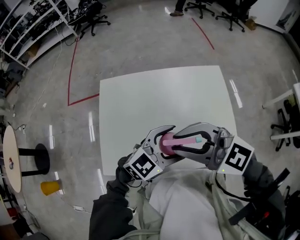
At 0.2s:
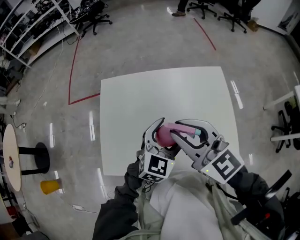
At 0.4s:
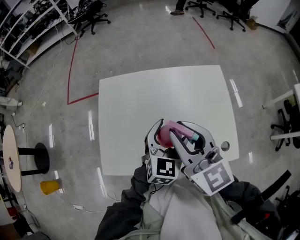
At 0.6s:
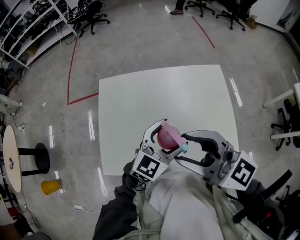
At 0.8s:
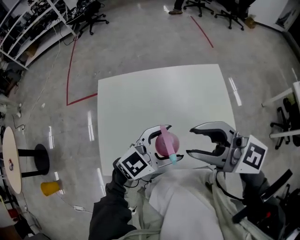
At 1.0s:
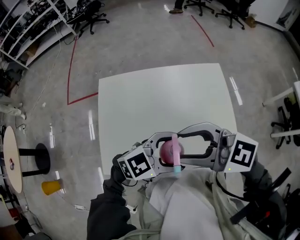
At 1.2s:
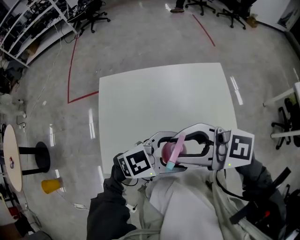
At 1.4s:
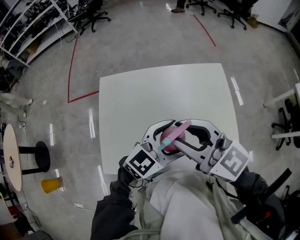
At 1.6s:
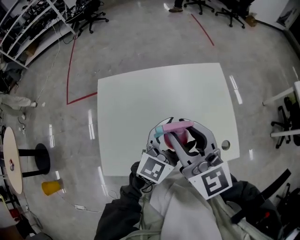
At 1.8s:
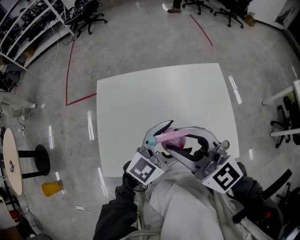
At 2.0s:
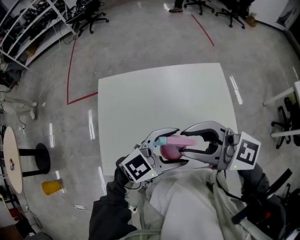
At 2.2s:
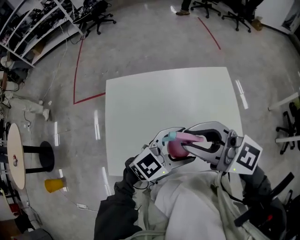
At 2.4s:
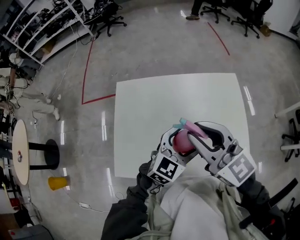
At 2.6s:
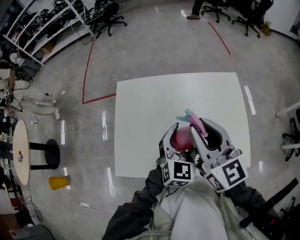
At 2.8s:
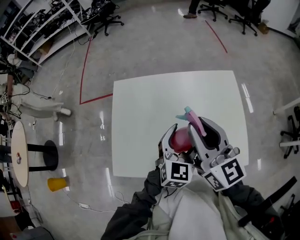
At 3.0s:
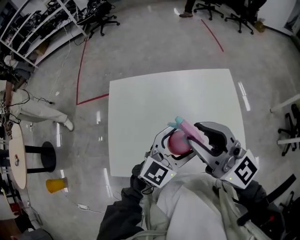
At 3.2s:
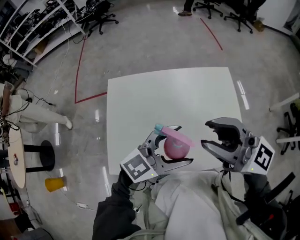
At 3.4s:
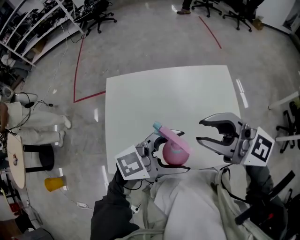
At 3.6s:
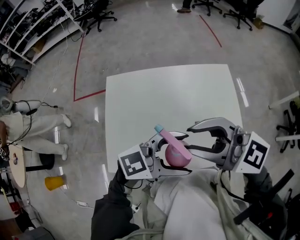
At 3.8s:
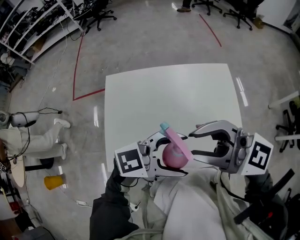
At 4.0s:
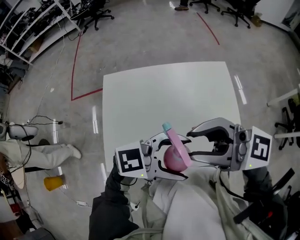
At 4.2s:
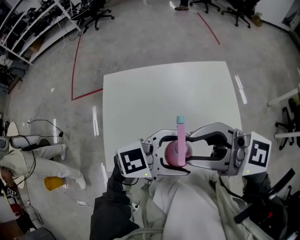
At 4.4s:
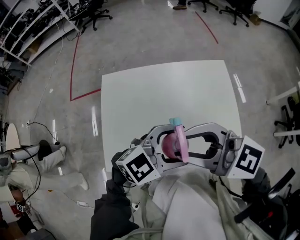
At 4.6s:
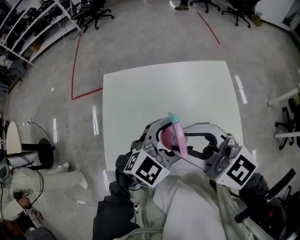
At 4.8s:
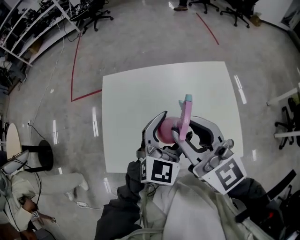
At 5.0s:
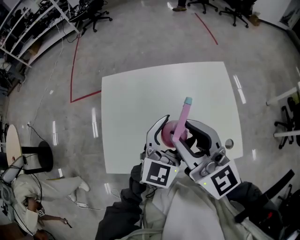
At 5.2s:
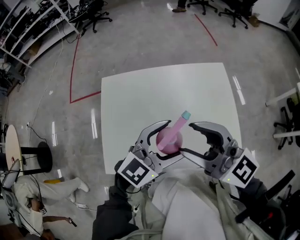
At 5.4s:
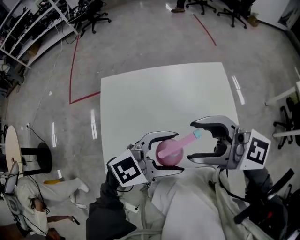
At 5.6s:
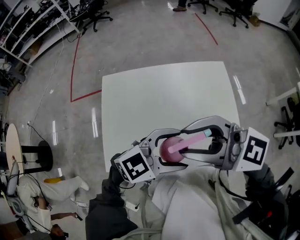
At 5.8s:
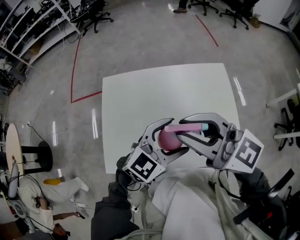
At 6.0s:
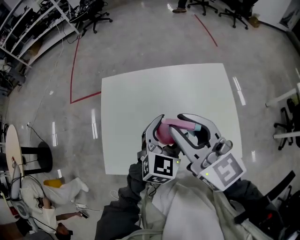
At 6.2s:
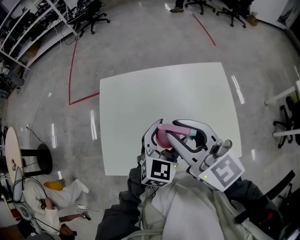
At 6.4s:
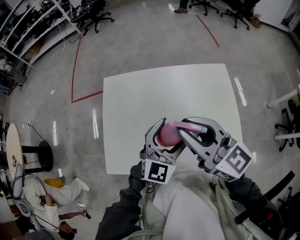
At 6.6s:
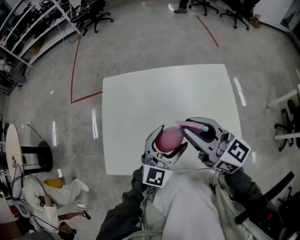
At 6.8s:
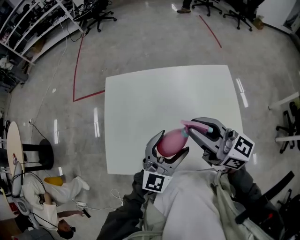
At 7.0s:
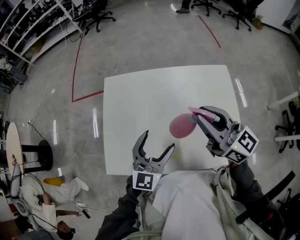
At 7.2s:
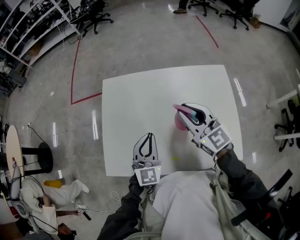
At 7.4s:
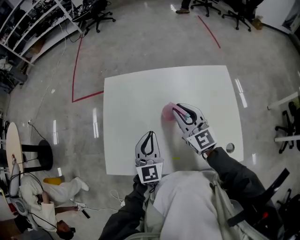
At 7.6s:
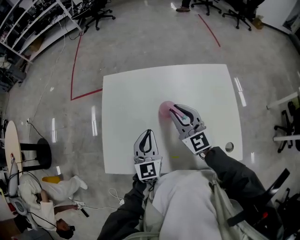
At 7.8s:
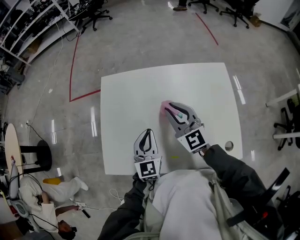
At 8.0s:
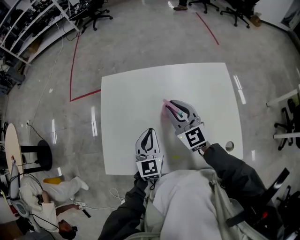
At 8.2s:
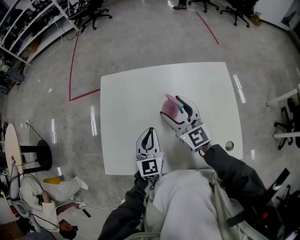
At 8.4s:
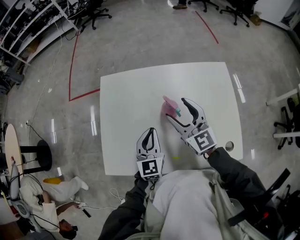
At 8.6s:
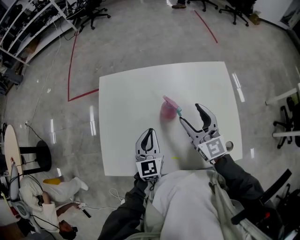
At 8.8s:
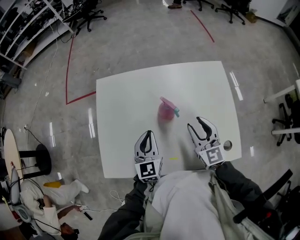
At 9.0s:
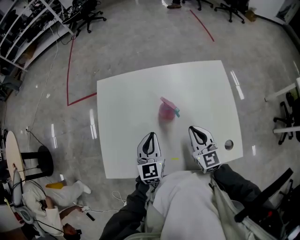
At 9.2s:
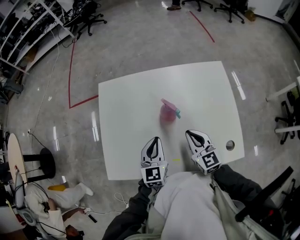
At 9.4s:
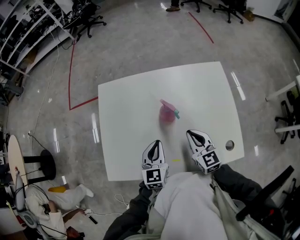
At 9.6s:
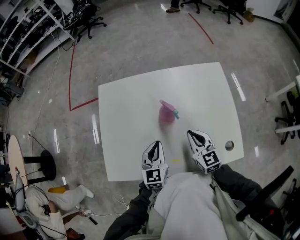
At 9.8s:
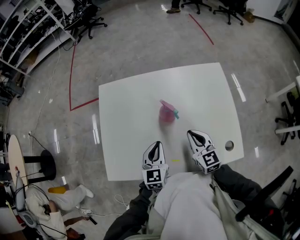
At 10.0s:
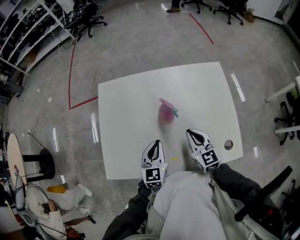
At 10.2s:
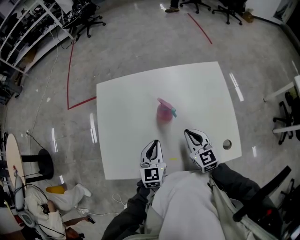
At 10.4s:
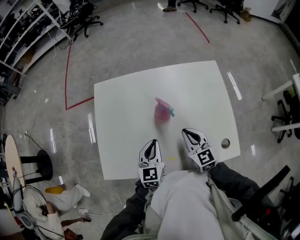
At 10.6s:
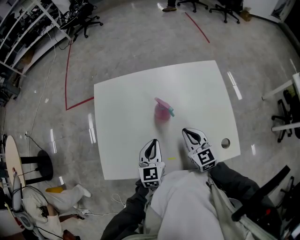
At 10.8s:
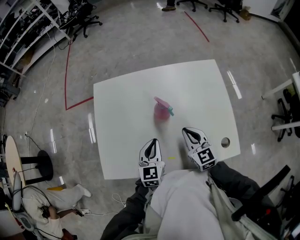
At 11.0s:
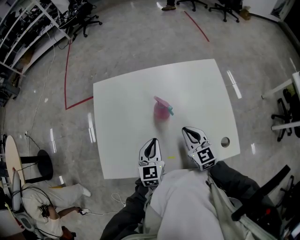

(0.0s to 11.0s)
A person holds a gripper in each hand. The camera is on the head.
0.0s - 1.6s: The left gripper ends up roughly 5 cm from where it was, and swivels roughly 20 degrees. Meanwhile the right gripper ends up roughly 5 cm from where it was, and rotates some 40 degrees.
1.6s - 3.2s: The right gripper moves roughly 10 cm, and rotates about 30 degrees. Meanwhile the left gripper moves some 5 cm, and swivels approximately 20 degrees.
3.2s - 4.8s: The left gripper shifts by some 5 cm, and changes its angle by approximately 40 degrees. The right gripper changes place by approximately 10 cm, and turns by roughly 30 degrees.
4.8s - 6.2s: The right gripper opens, then closes again.
6.2s - 7.8s: The left gripper goes roughly 15 cm to the left and downward, turns by some 30 degrees, and closes its fingers; the right gripper shifts roughly 20 cm downward and forward.
7.8s - 9.4s: The right gripper travels backward, downward and to the right by roughly 15 cm, swivels roughly 20 degrees, and opens and closes again; the left gripper moves approximately 5 cm.
9.4s - 11.0s: The two grippers keep their place.

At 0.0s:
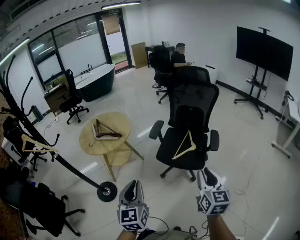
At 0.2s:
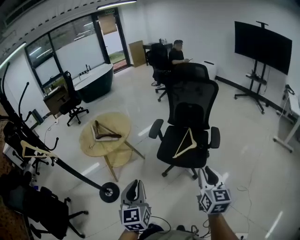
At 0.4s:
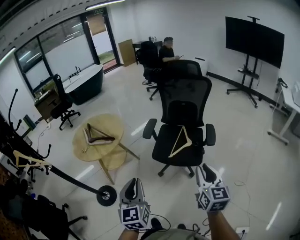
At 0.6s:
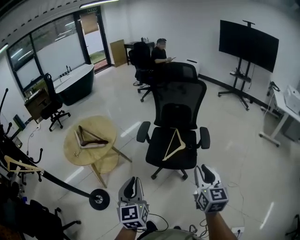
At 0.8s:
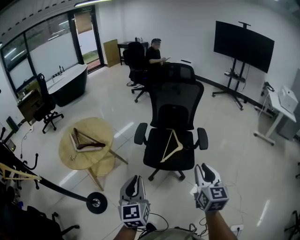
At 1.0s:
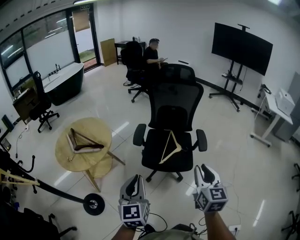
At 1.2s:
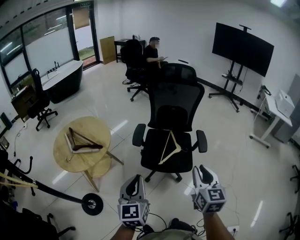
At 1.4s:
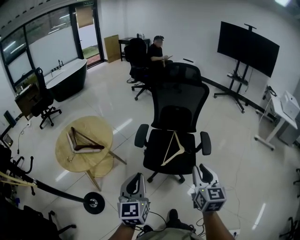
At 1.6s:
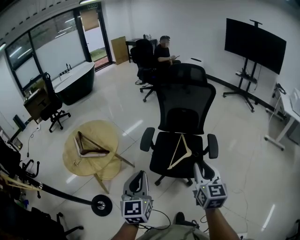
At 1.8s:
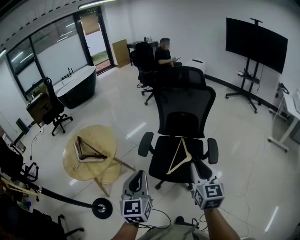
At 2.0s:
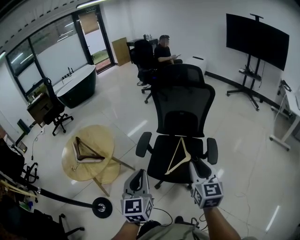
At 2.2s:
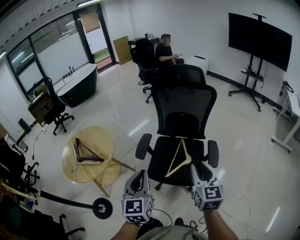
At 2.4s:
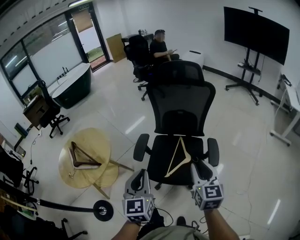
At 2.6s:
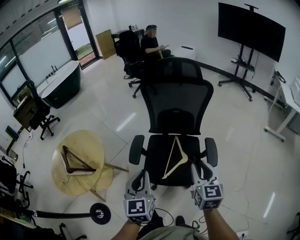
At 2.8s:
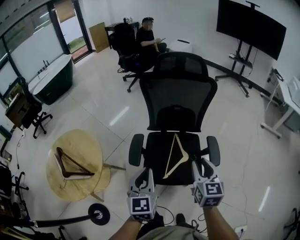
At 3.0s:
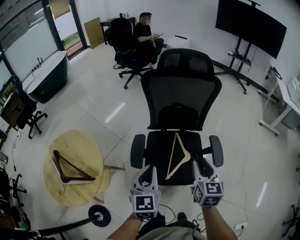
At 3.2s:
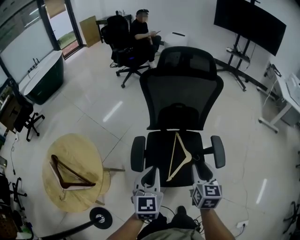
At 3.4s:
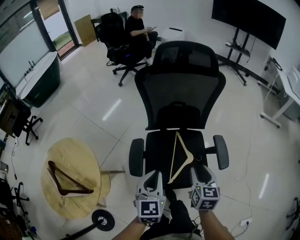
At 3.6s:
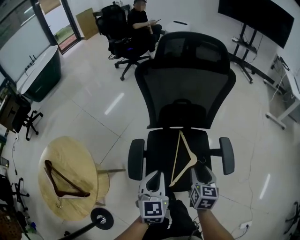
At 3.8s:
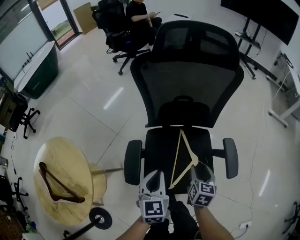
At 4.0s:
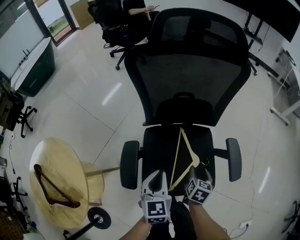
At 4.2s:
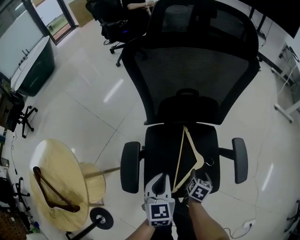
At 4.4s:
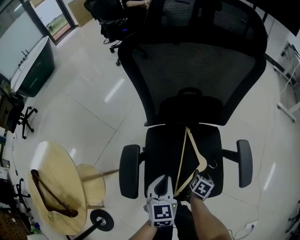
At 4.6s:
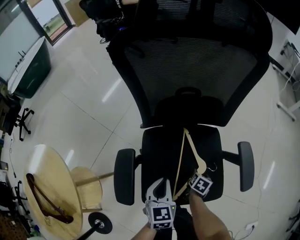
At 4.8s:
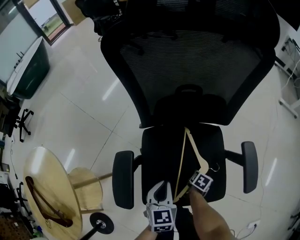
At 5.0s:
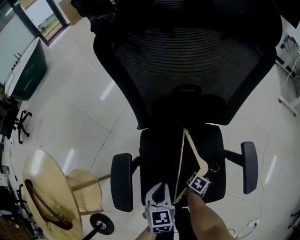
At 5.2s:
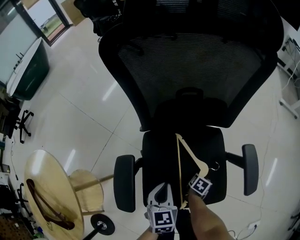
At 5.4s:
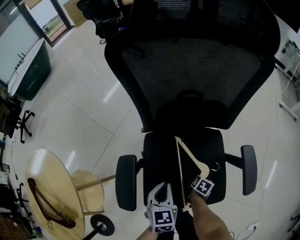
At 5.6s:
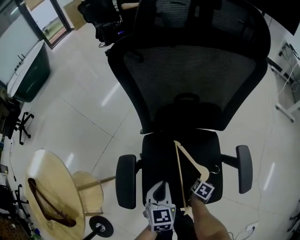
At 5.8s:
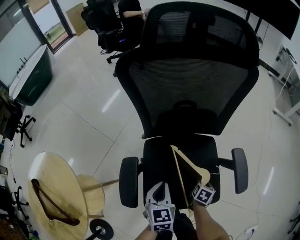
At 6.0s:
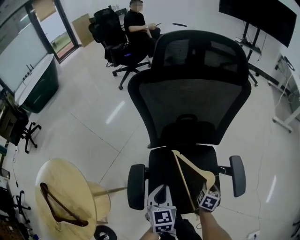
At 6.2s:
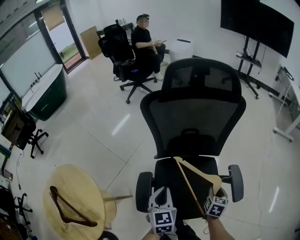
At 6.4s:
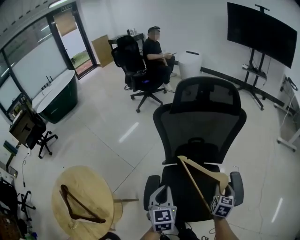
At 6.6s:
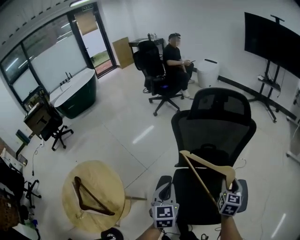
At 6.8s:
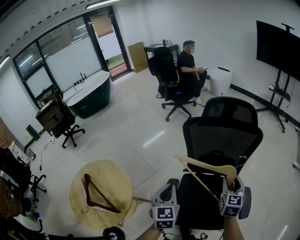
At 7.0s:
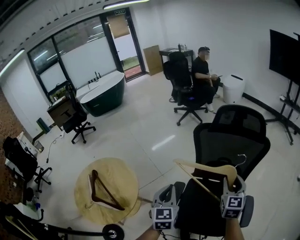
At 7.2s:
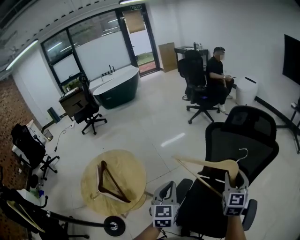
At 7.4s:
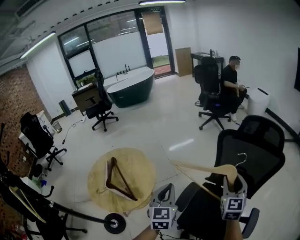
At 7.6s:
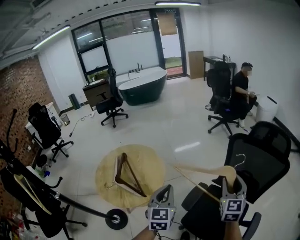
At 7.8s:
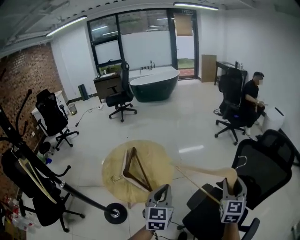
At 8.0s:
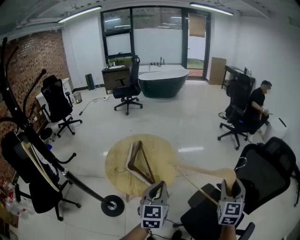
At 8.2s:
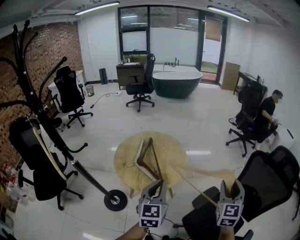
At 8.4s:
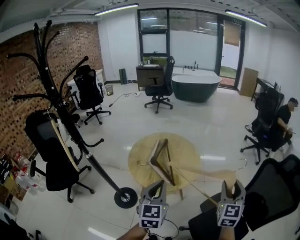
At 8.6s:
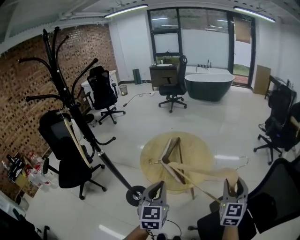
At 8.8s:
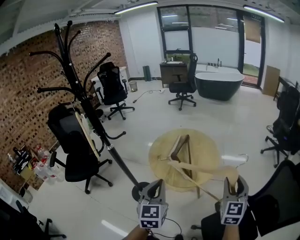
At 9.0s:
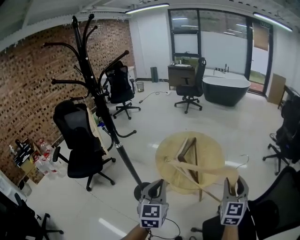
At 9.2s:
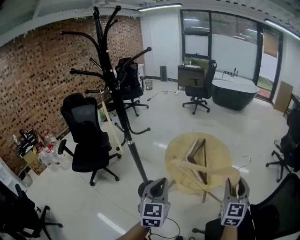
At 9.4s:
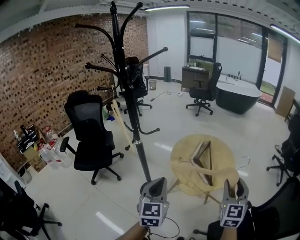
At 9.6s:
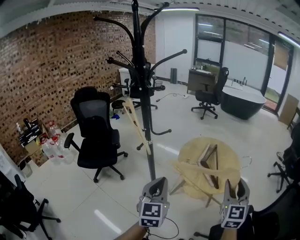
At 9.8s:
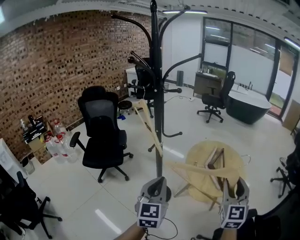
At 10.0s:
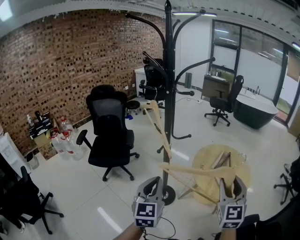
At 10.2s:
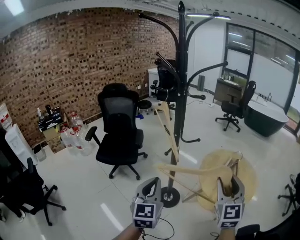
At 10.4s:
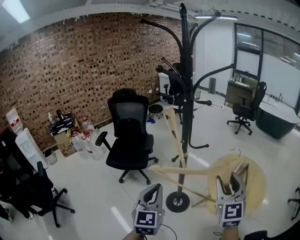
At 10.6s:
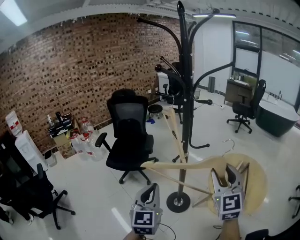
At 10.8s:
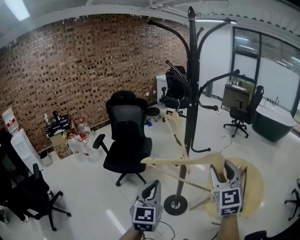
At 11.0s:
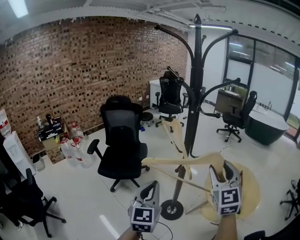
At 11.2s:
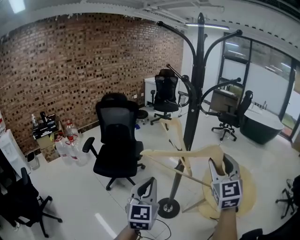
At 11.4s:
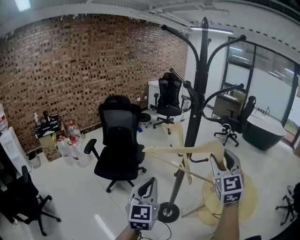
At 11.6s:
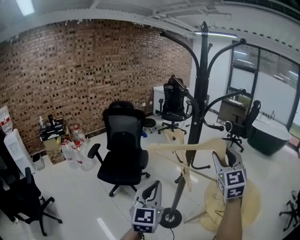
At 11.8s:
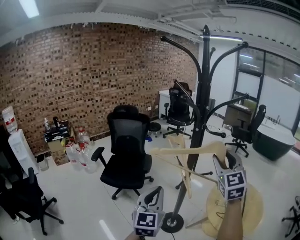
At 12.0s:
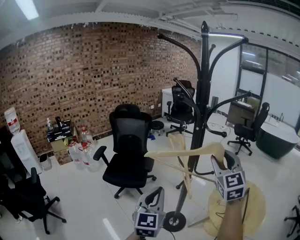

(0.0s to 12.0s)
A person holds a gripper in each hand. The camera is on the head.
0.0s - 1.6s: The grippers both shift forward by about 30 cm.
1.6s - 3.0s: Both grippers travel together forward, approximately 35 cm.
3.0s - 4.4s: The grippers both shift downward and forward by about 50 cm. The right gripper tilts its fingers some 40 degrees downward, and opens its fingers.
4.4s - 6.0s: Both grippers move upward, about 10 cm.
6.0s - 7.6s: The left gripper shifts by some 50 cm, and swivels some 40 degrees, while the right gripper moves upward, about 60 cm, and tips its fingers upward by approximately 50 degrees.
7.6s - 9.0s: The left gripper moves approximately 40 cm, and swivels roughly 40 degrees, while the right gripper ends up approximately 35 cm from where it was, and turns by roughly 40 degrees.
9.0s - 10.4s: The pair of grippers is taken some 50 cm. The left gripper swivels some 20 degrees; the right gripper changes its angle by approximately 40 degrees.
10.4s - 12.0s: The right gripper heads forward and upward, covering about 25 cm. Meanwhile the left gripper shifts some 15 cm forward.
